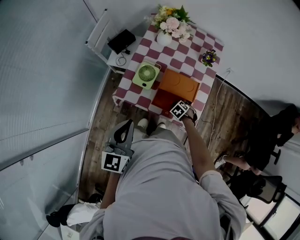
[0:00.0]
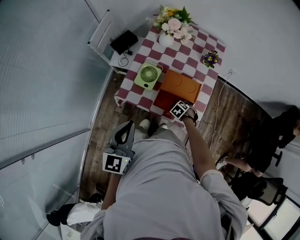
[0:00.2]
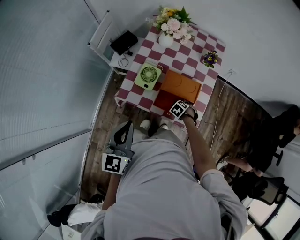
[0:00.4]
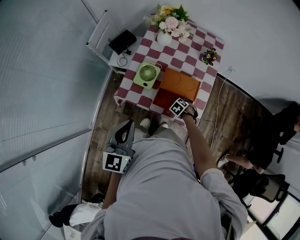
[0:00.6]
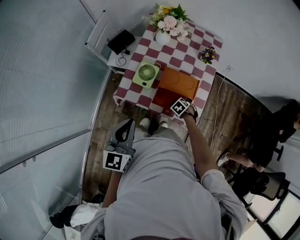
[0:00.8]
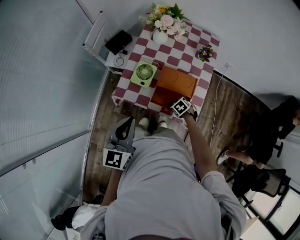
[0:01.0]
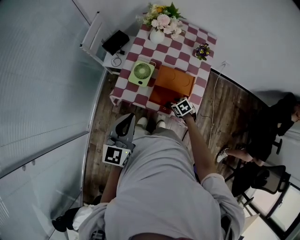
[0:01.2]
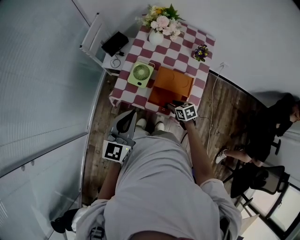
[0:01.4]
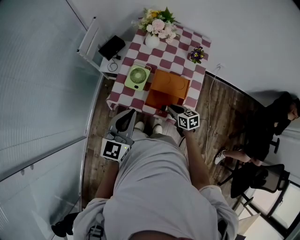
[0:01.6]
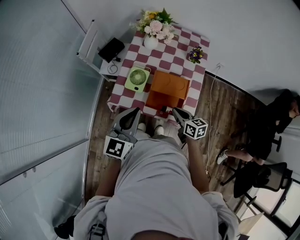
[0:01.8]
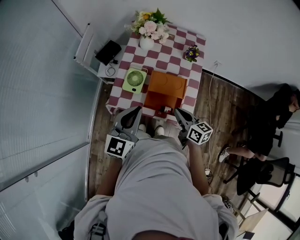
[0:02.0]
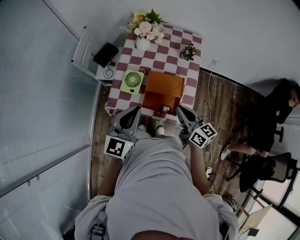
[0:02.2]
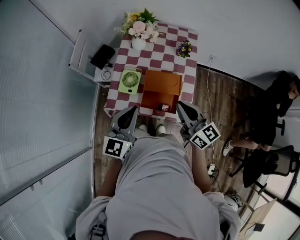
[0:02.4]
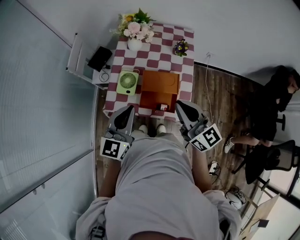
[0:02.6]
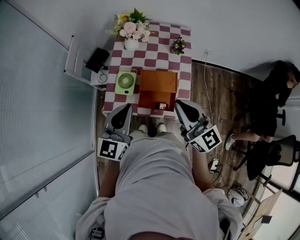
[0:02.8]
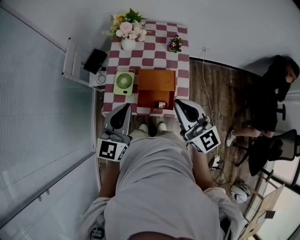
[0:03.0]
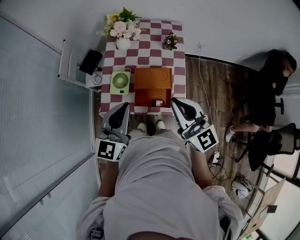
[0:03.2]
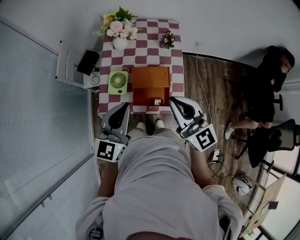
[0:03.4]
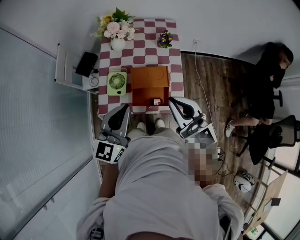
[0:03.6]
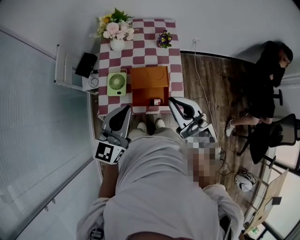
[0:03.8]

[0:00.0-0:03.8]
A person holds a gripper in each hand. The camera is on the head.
0:00.0 to 0:01.2: The right gripper is displaced upward by approximately 5 cm, and rotates approximately 20 degrees.
0:01.2 to 0:02.6: The left gripper travels to the right by about 5 cm. Meanwhile the right gripper is displaced upward by about 40 cm, tilts its fingers some 70 degrees upward, and closes its fingers.
0:02.6 to 0:03.8: There are only small adjustments of the grippers.

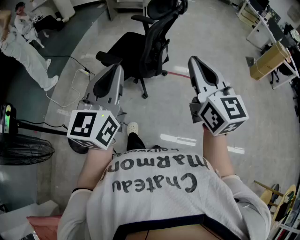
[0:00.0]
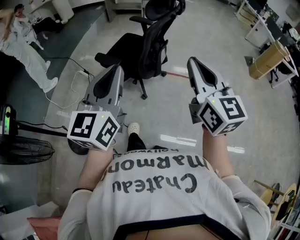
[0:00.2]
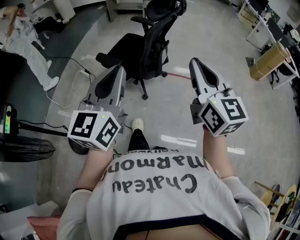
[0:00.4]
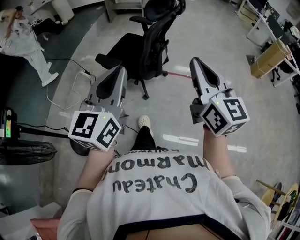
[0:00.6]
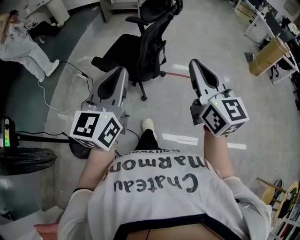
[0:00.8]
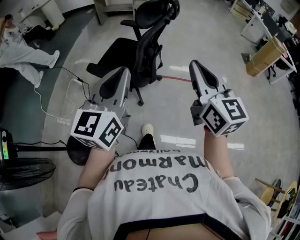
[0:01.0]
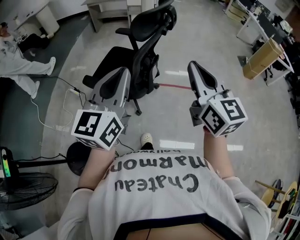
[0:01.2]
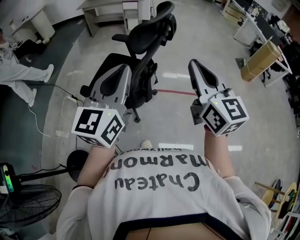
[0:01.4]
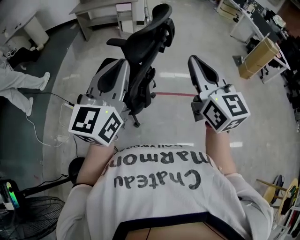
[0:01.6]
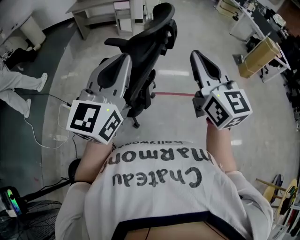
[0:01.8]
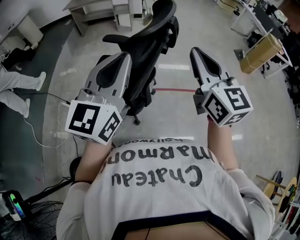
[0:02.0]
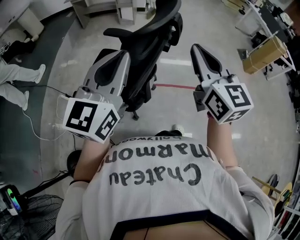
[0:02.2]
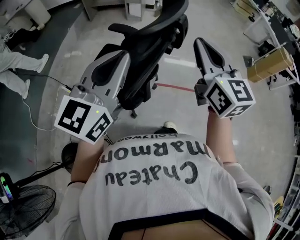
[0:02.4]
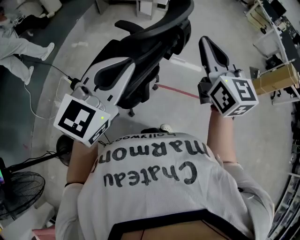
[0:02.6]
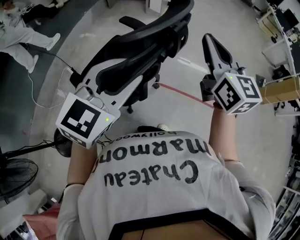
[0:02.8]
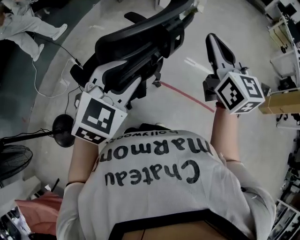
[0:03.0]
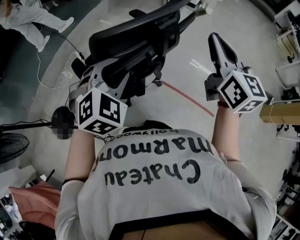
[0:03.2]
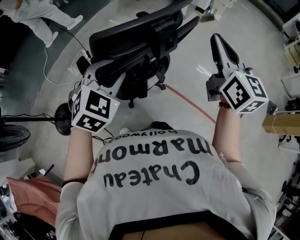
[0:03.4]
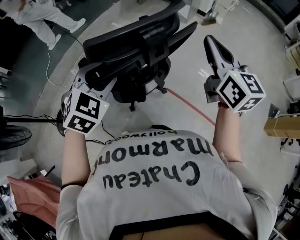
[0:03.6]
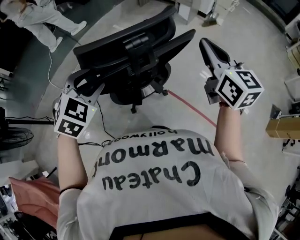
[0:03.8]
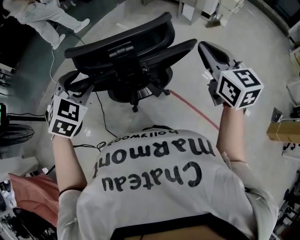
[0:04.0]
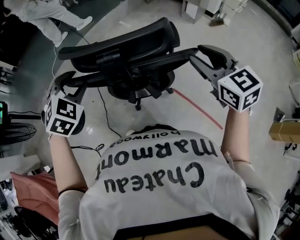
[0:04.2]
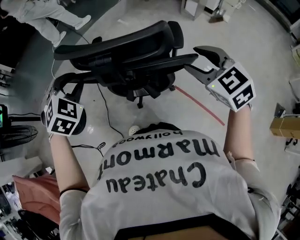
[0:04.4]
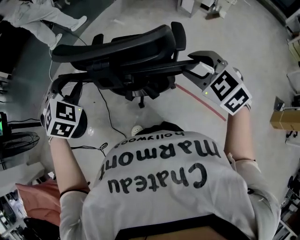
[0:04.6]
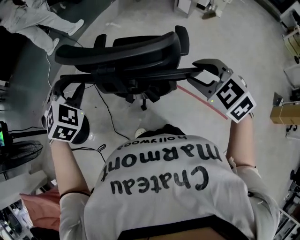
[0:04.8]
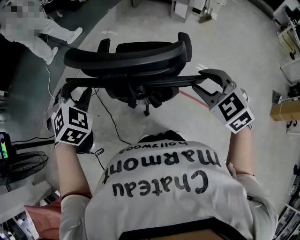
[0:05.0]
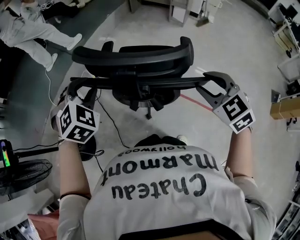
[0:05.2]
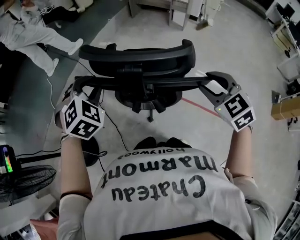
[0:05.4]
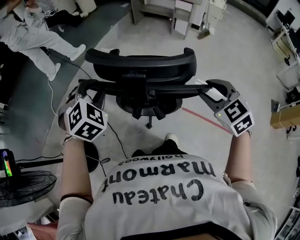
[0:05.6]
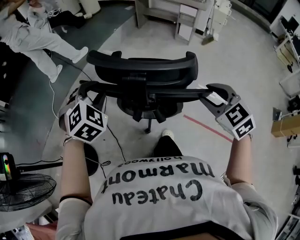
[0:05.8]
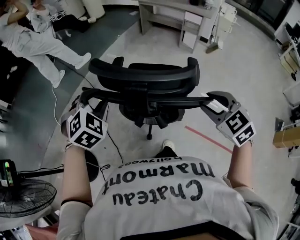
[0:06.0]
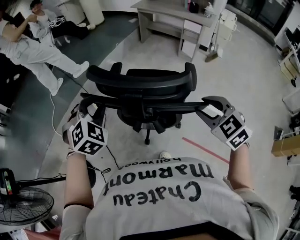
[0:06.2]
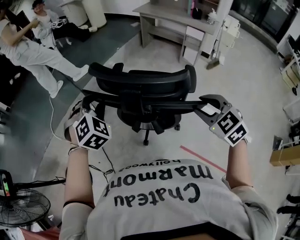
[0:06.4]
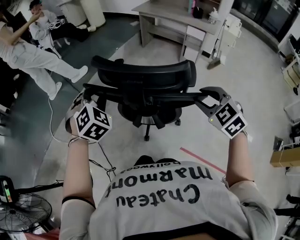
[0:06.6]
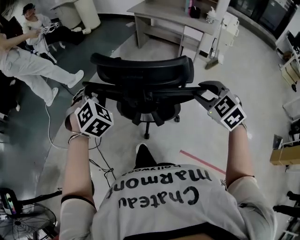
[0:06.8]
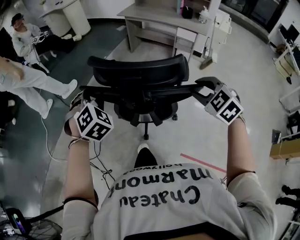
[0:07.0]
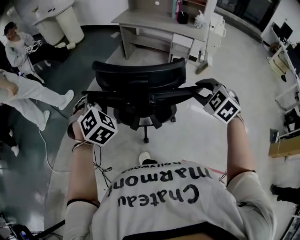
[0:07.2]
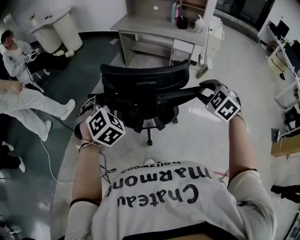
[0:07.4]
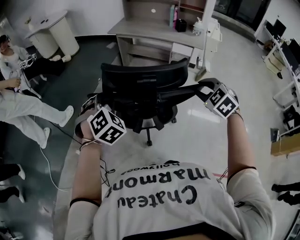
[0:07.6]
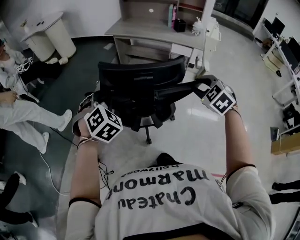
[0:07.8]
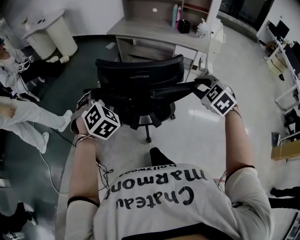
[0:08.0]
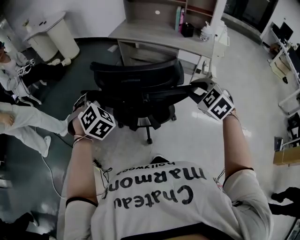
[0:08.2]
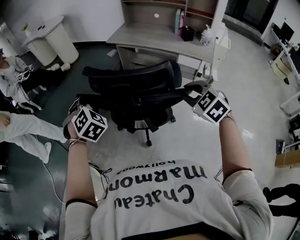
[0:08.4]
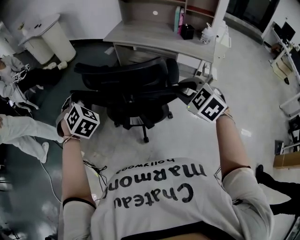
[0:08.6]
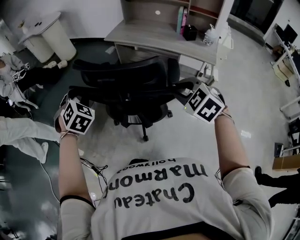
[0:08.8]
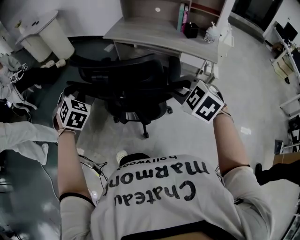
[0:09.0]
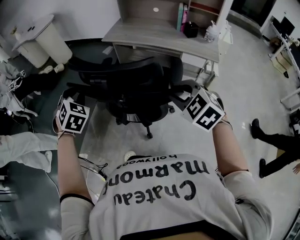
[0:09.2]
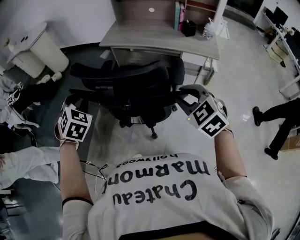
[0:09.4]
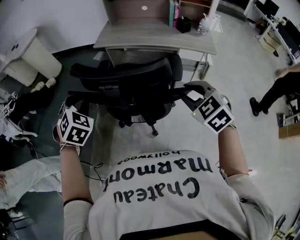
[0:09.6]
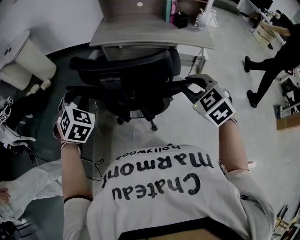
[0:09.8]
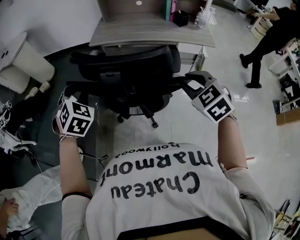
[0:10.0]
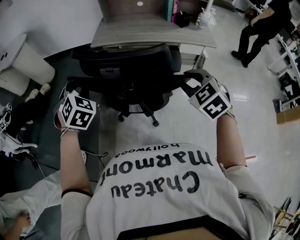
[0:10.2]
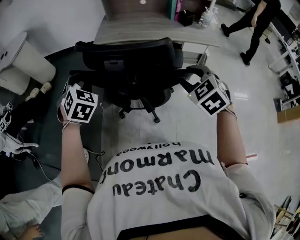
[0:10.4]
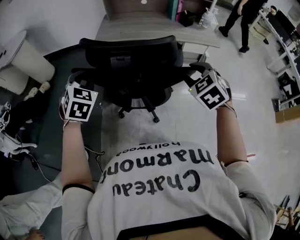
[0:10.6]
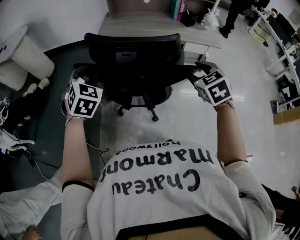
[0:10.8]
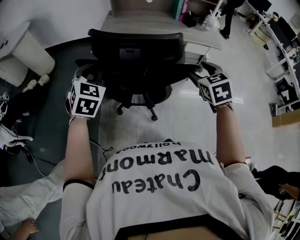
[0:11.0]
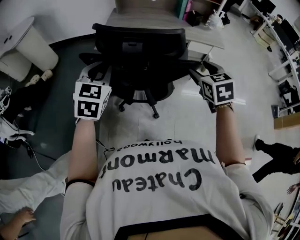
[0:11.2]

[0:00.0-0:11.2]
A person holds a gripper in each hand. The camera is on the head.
0:00.0 to 0:01.6: Both grippers move forward, approximately 25 cm.
0:01.6 to 0:03.2: The right gripper changes place by about 30 cm, and changes its angle by roughly 20 degrees. The left gripper travels downward by about 15 cm, tilts its fingers approximately 40 degrees downward, and opens up.
0:03.2 to 0:04.8: The right gripper changes place by about 20 cm, points its fingers about 40 degrees further downward, and opens up. The left gripper shifts by some 25 cm.
0:04.8 to 0:06.4: The two grippers go approximately 30 cm forward.
0:06.4 to 0:08.0: The pair of grippers is taken forward, roughly 50 cm.
0:08.0 to 0:09.6: The left gripper is displaced forward by roughly 30 cm. The right gripper heads forward and to the left, covering about 25 cm.
0:09.6 to 0:11.2: The right gripper moves forward and to the left, approximately 10 cm, changes its angle by approximately 30 degrees, and opens. Meanwhile the left gripper is displaced forward by approximately 5 cm, and changes its angle by some 40 degrees.

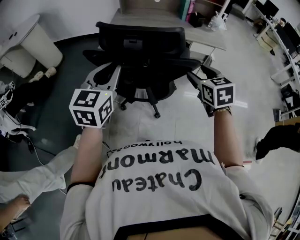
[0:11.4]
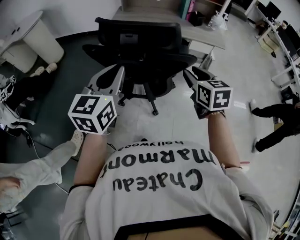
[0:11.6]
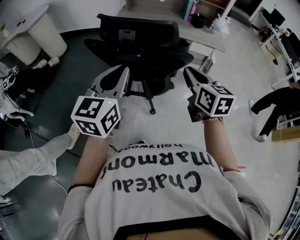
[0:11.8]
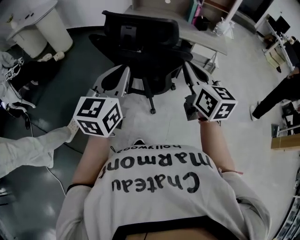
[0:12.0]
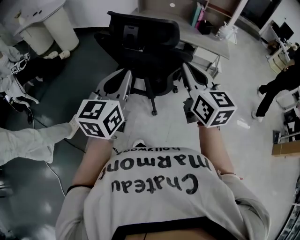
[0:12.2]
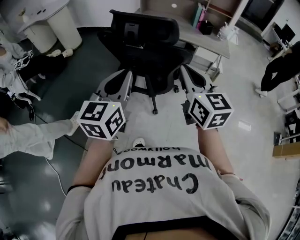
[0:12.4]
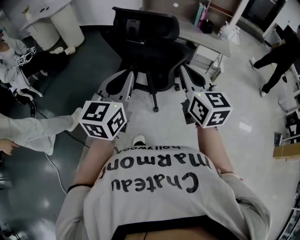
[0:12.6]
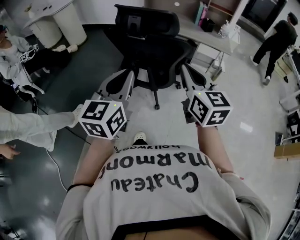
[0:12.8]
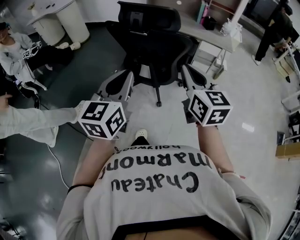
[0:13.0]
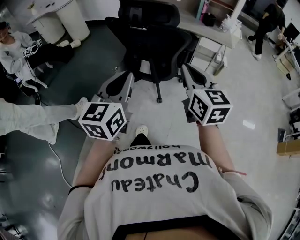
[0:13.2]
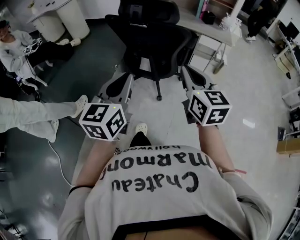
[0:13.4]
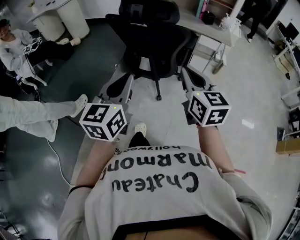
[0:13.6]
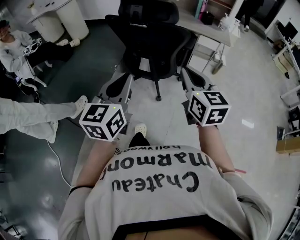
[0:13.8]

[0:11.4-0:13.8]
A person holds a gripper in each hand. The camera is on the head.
0:11.4 to 0:12.6: The left gripper heads backward and to the right, covering roughly 20 cm, while the right gripper is displaced backward and upward by about 20 cm, rotates approximately 30 degrees, and closes.
0:12.6 to 0:13.8: Both grippers travel together backward, about 10 cm.

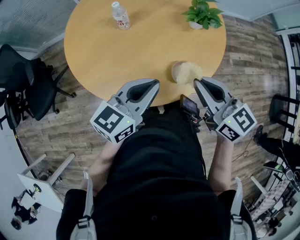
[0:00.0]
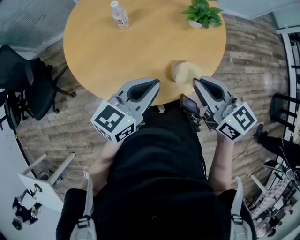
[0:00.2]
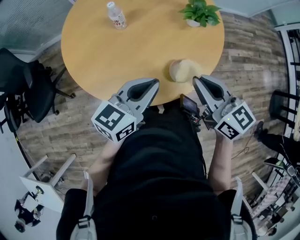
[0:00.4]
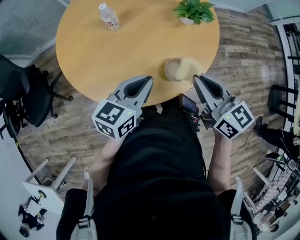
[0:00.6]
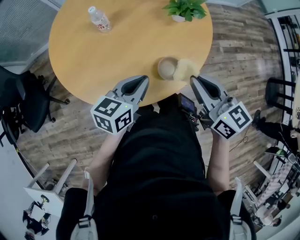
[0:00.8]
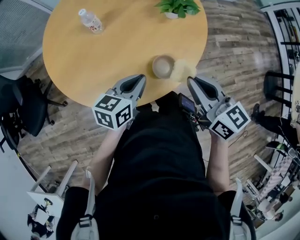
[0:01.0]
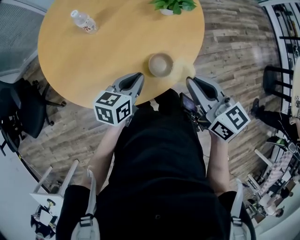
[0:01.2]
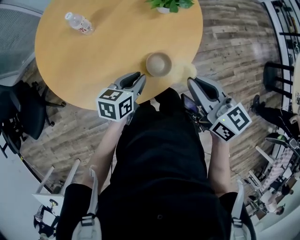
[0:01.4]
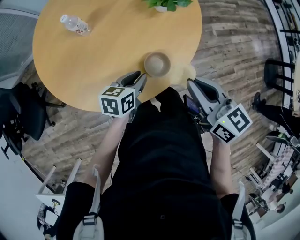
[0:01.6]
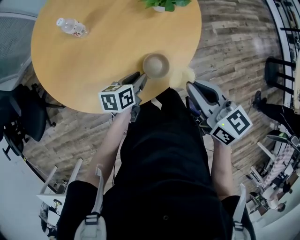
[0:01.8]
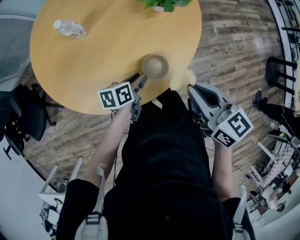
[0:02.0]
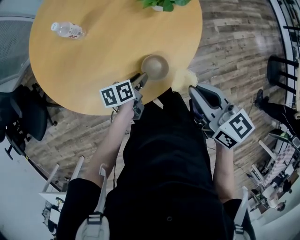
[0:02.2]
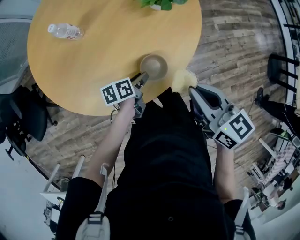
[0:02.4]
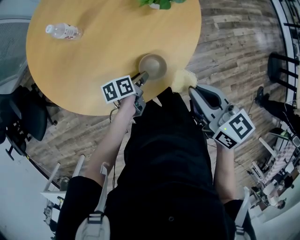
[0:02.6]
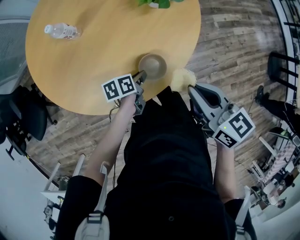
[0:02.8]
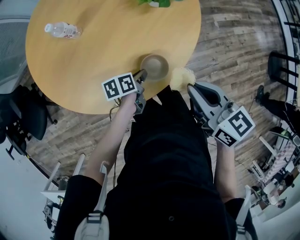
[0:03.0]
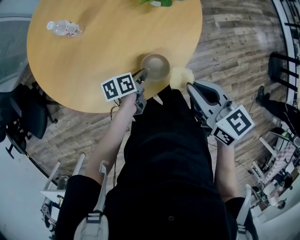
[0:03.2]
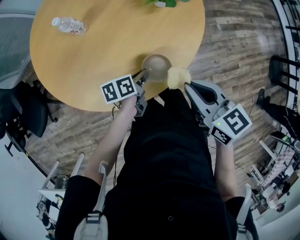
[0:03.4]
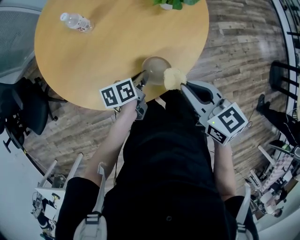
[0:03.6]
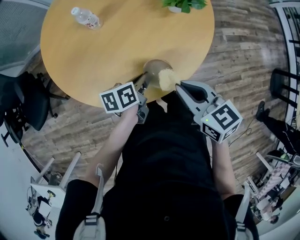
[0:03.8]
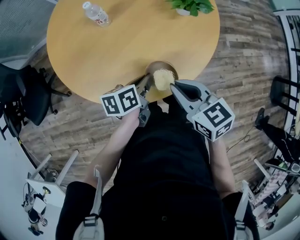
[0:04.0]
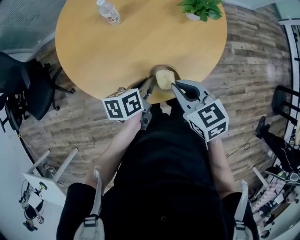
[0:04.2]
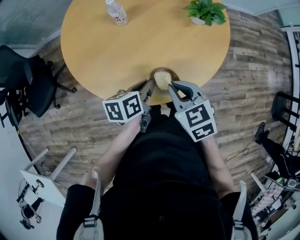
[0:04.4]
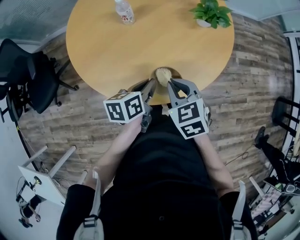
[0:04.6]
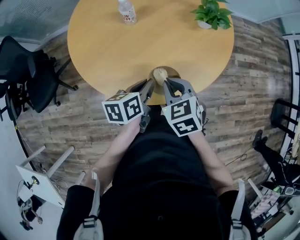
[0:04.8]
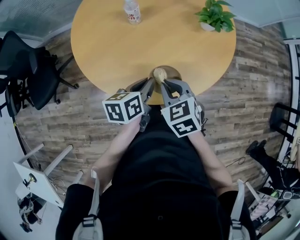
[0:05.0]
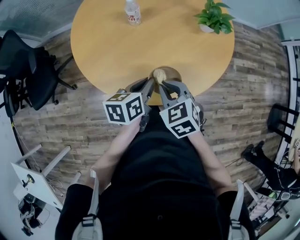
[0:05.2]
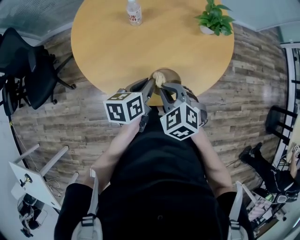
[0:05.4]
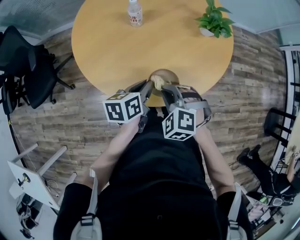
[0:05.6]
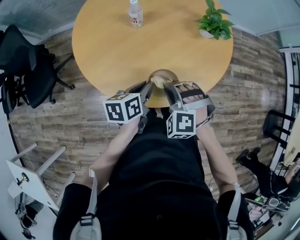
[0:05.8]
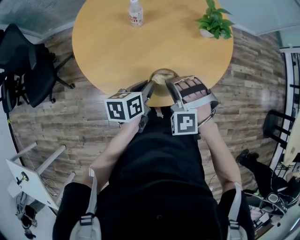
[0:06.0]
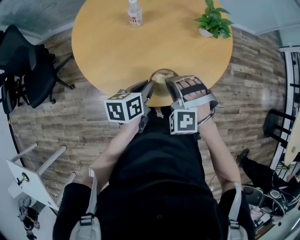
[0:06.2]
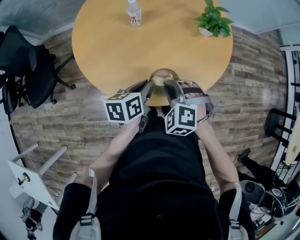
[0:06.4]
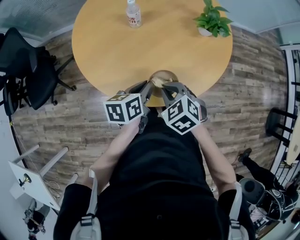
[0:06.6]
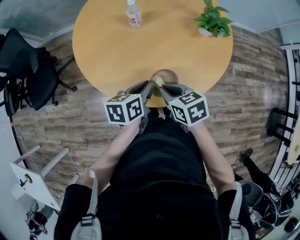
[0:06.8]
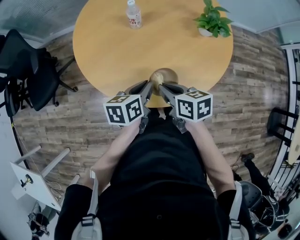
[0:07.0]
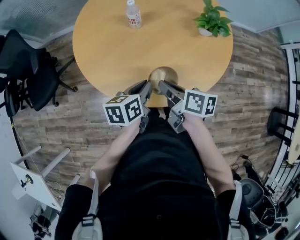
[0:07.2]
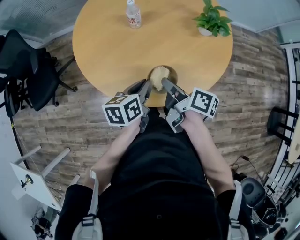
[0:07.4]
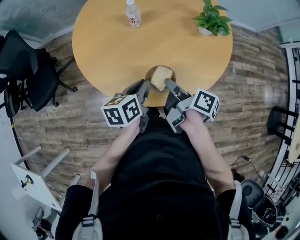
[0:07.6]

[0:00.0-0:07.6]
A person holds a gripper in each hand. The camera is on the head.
0:00.0 to 0:01.6: The right gripper travels to the right by about 10 cm. Meanwhile the left gripper travels downward by about 20 cm, changes its angle by approximately 30 degrees, and opens its fingers.
0:01.6 to 0:03.0: The left gripper shifts about 10 cm downward, and rotates some 30 degrees.
0:03.0 to 0:04.6: The left gripper shifts roughly 20 cm upward and to the left, and swivels some 20 degrees. Meanwhile the right gripper is displaced to the left by about 20 cm, and changes its angle by approximately 40 degrees.
0:04.6 to 0:06.0: The right gripper rolls counterclockwise, seen from behind, by some 70 degrees.
0:06.0 to 0:07.6: The right gripper twists approximately 150 degrees clockwise, seen from behind.
